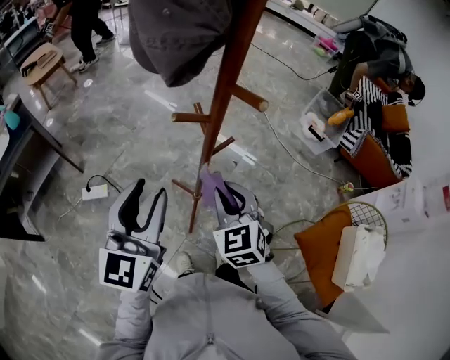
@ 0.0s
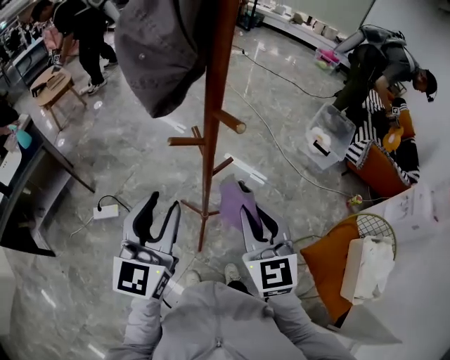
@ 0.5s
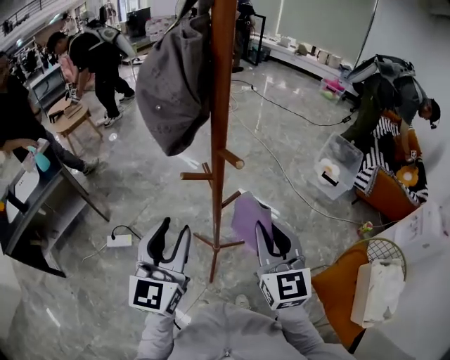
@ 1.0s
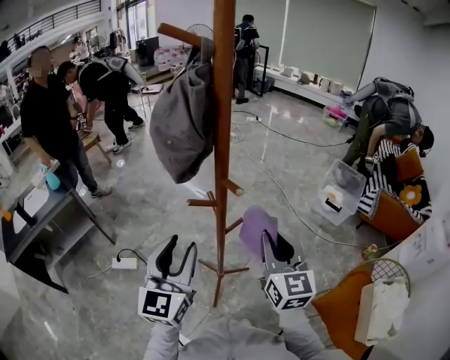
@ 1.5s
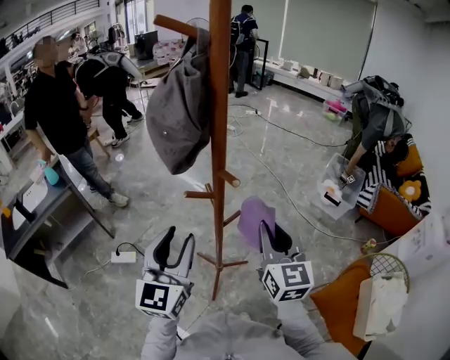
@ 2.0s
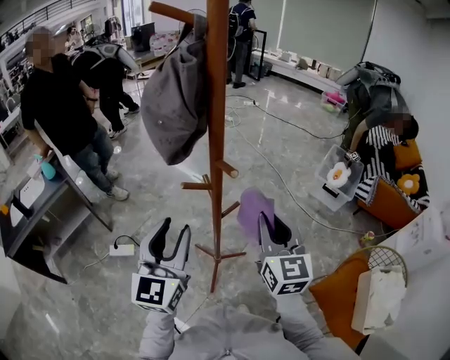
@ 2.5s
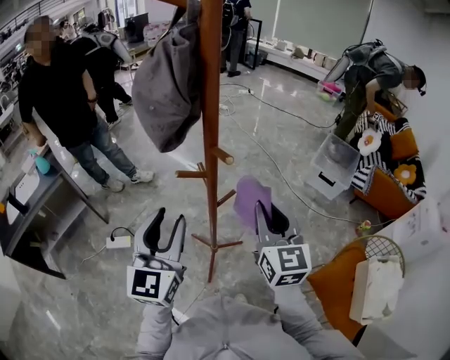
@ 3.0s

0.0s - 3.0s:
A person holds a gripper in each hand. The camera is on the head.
0.0s - 1.5s: The right gripper shifts about 20 cm upward and to the right, and swivels about 40 degrees, while the left gripper moves about 5 cm.
1.5s - 3.0s: Neither gripper changes place.

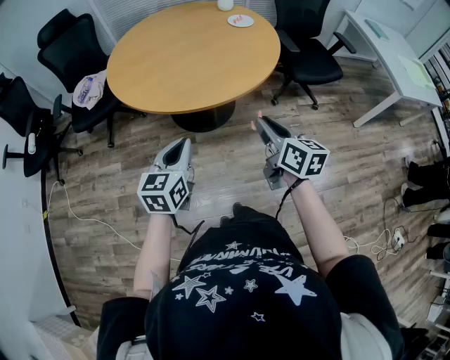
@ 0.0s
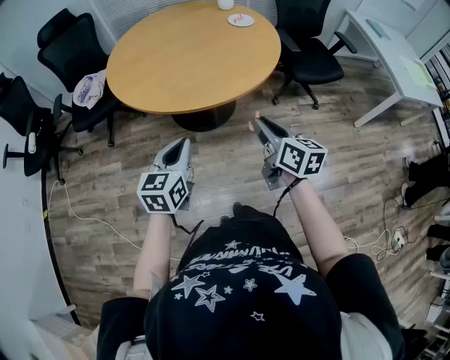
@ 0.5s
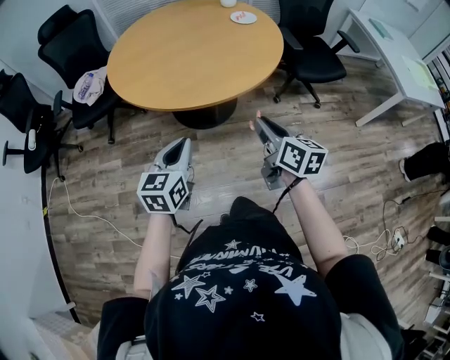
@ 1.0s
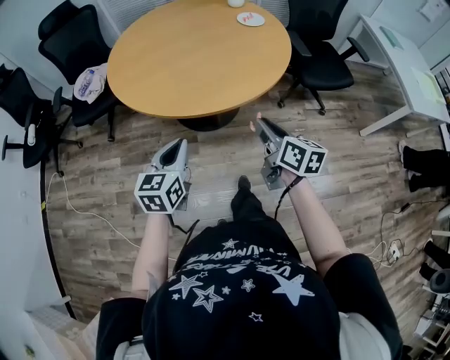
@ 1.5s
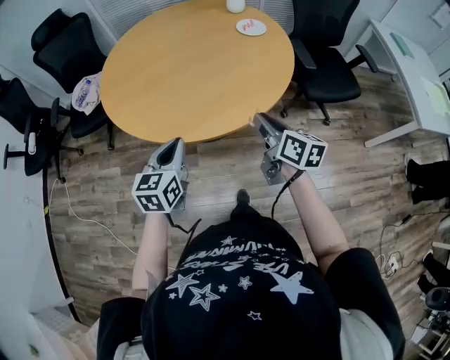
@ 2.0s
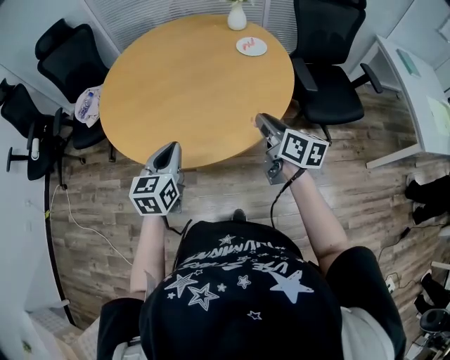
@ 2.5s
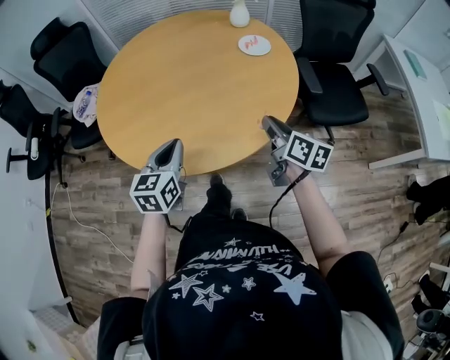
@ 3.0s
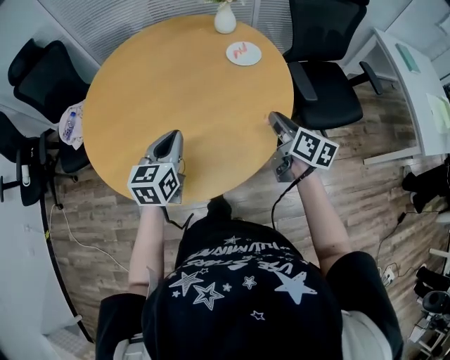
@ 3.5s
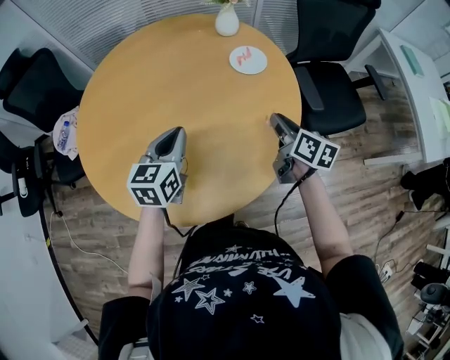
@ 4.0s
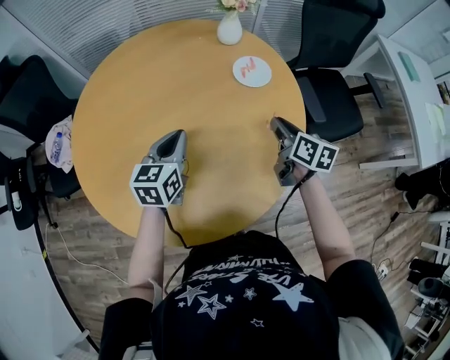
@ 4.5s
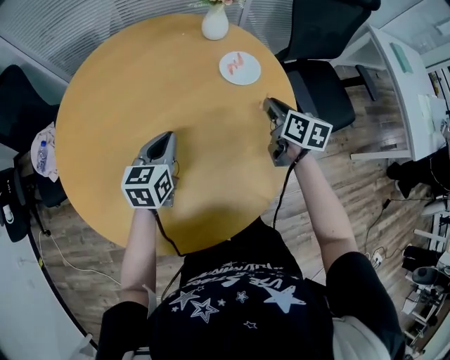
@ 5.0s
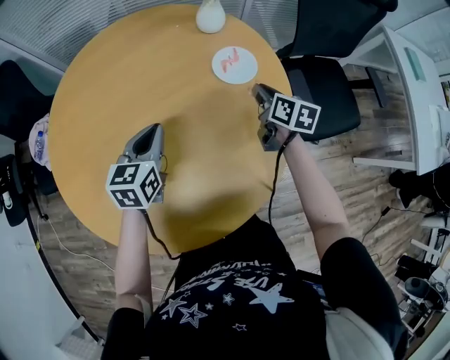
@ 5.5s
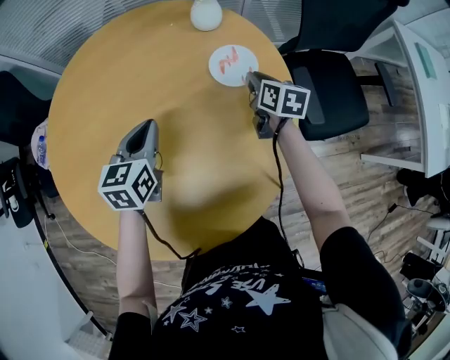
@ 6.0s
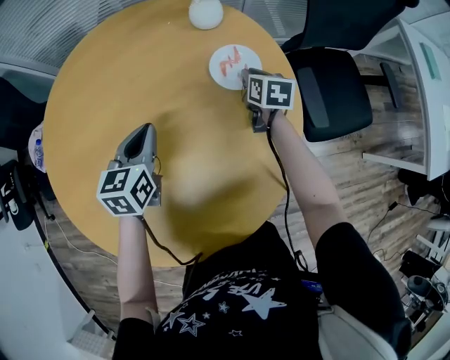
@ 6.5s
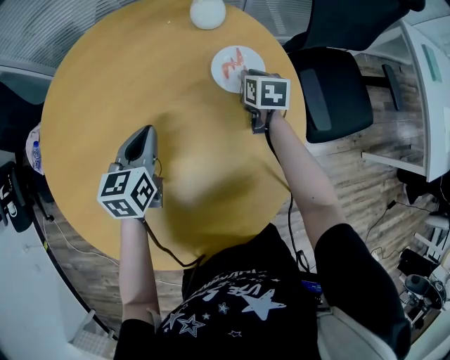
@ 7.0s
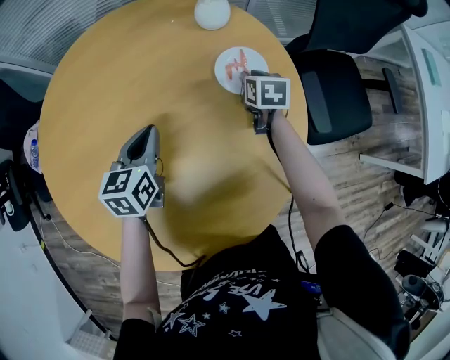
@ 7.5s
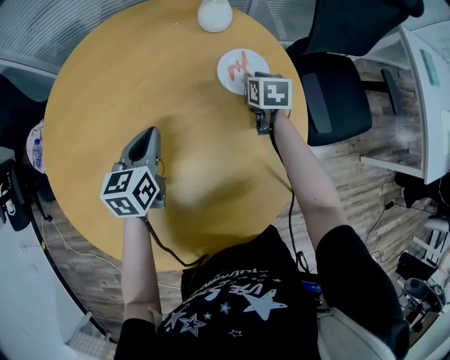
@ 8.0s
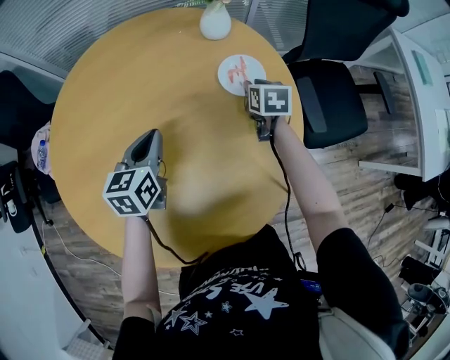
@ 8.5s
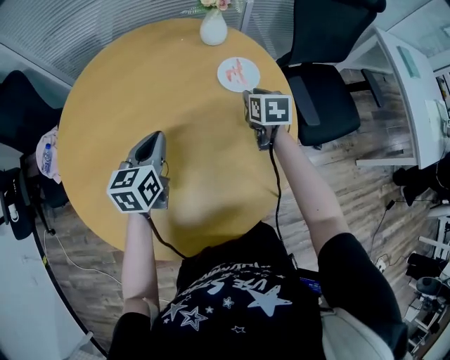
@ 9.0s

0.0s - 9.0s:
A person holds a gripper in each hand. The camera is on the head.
0.0s - 2.0s: Both grippers travel together forward, about 20 cm.
2.0s - 4.5s: Both grippers travel together forward, about 35 cm.
4.5s - 7.0s: The left gripper moves forward and downward, roughly 15 cm. Meanwhile the right gripper shifts about 30 cm forward and downward, and swivels roughly 30 degrees.
7.0s - 9.0s: Both grippers move backward and upward, some 10 cm.

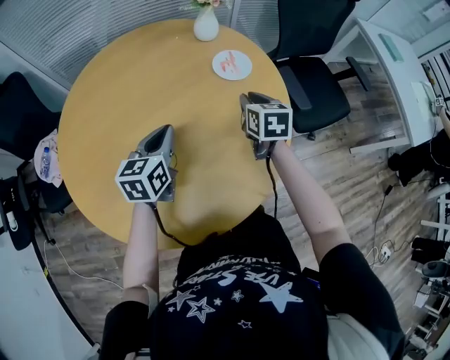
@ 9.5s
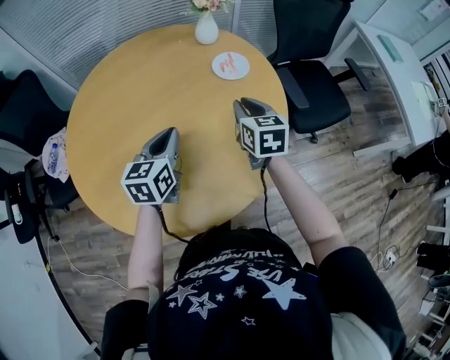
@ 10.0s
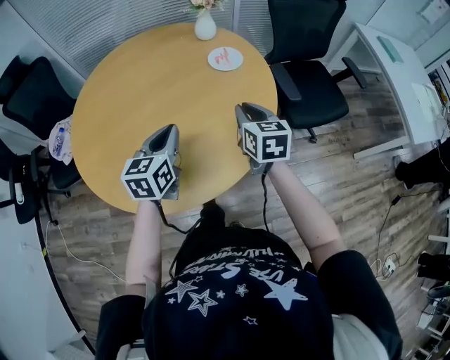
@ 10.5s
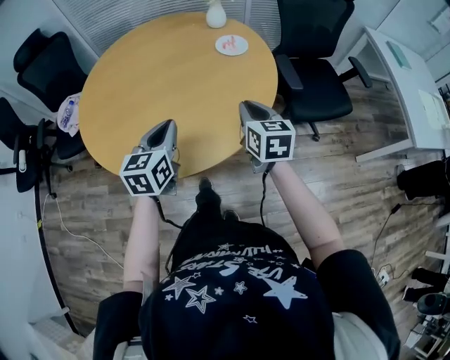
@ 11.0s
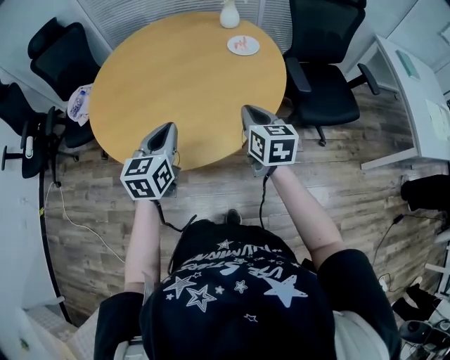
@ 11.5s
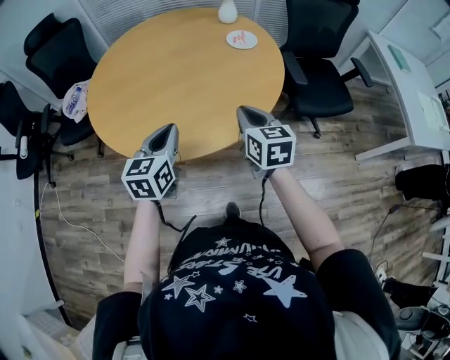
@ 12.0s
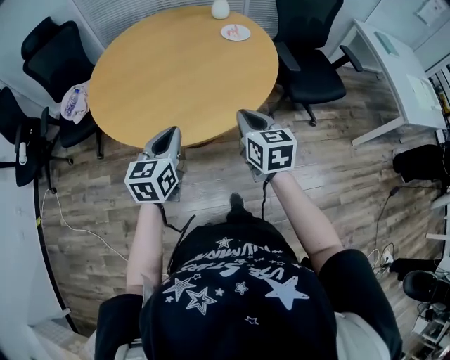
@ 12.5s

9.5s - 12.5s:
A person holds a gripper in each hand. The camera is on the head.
9.5s - 11.0s: Both grippers travel together backward, about 25 cm.
11.0s - 12.5s: Both grippers travel together backward and to the left, approximately 15 cm.

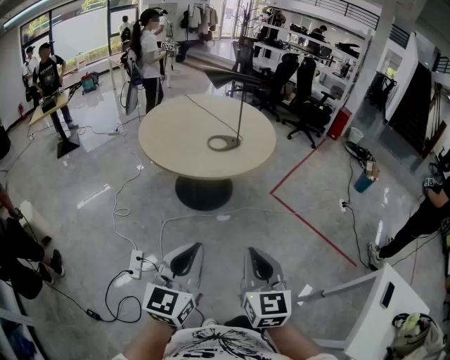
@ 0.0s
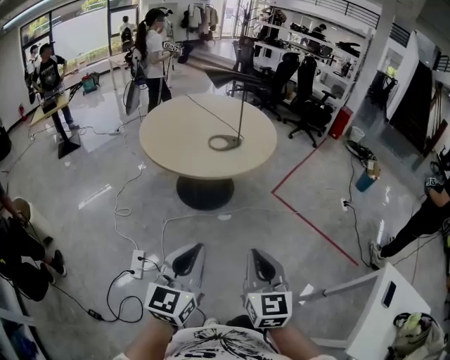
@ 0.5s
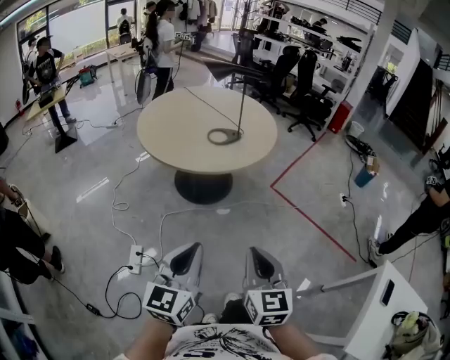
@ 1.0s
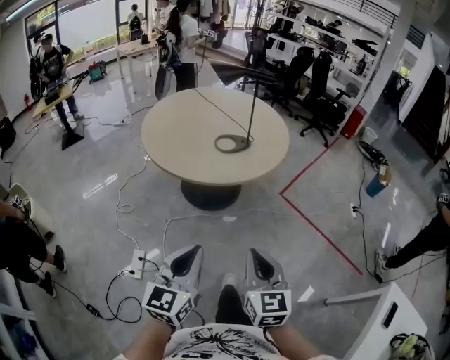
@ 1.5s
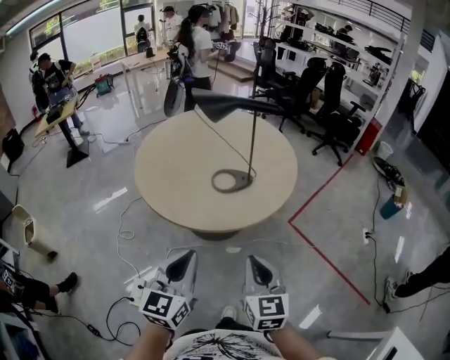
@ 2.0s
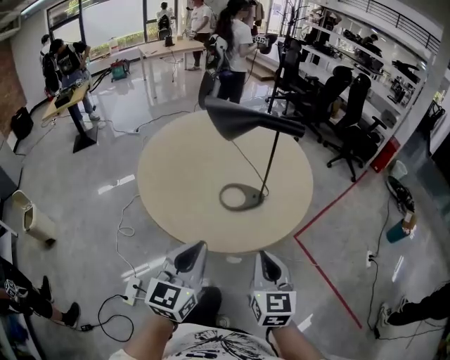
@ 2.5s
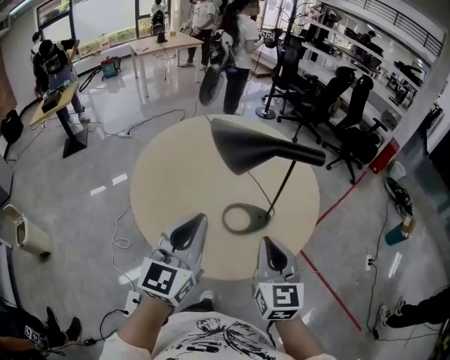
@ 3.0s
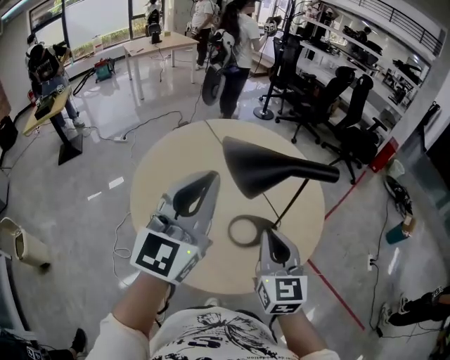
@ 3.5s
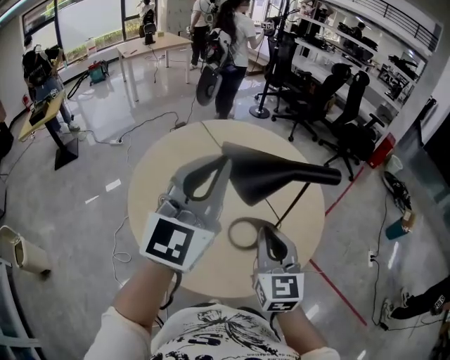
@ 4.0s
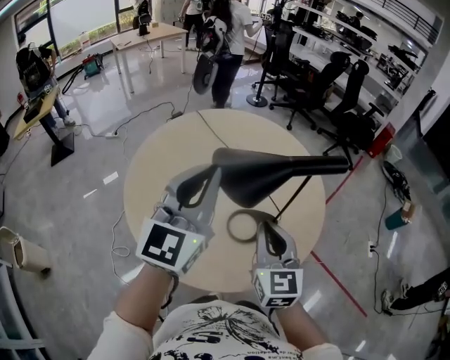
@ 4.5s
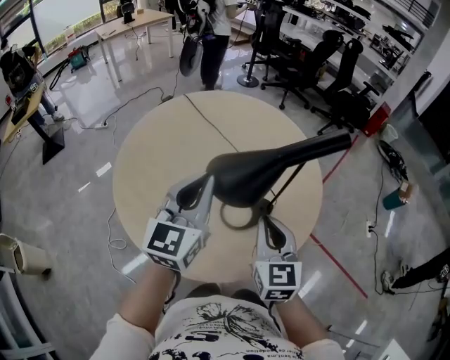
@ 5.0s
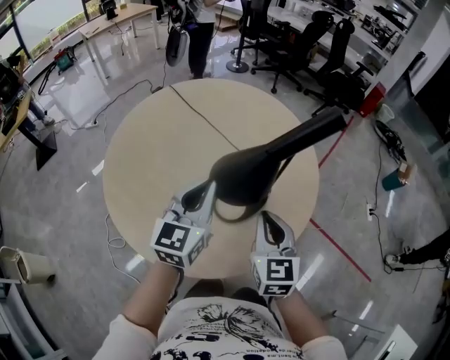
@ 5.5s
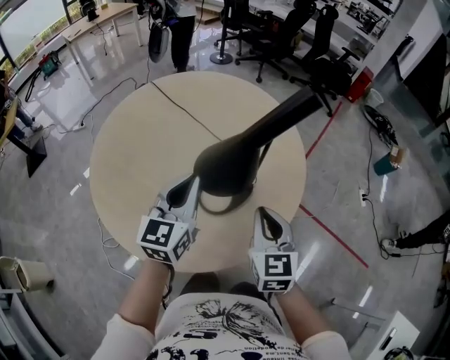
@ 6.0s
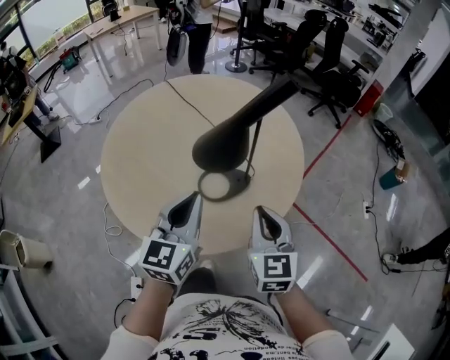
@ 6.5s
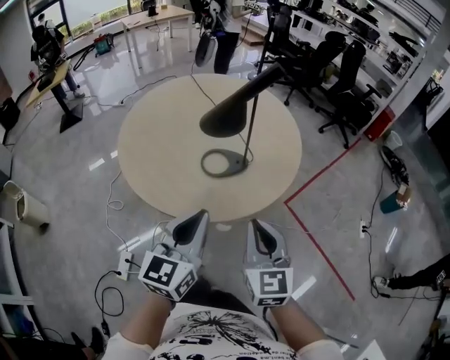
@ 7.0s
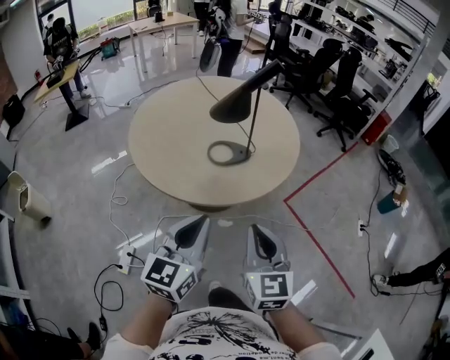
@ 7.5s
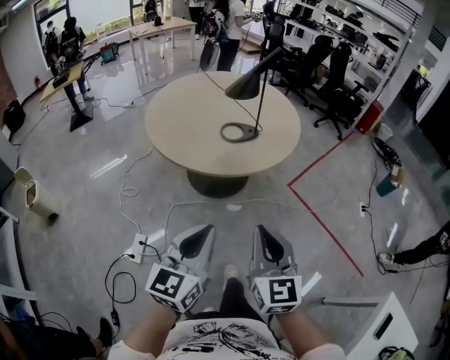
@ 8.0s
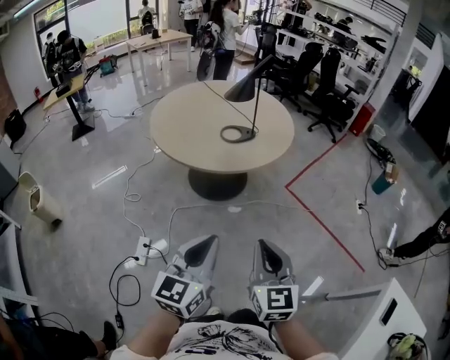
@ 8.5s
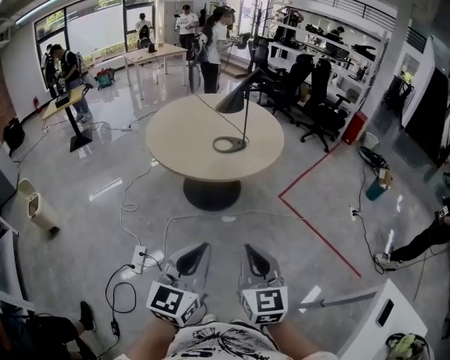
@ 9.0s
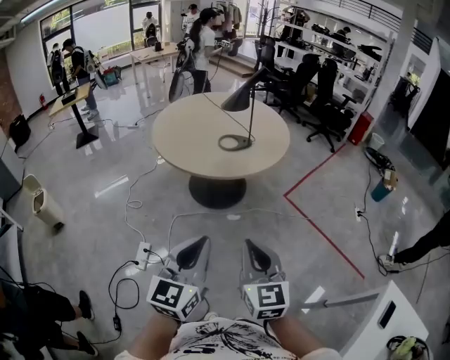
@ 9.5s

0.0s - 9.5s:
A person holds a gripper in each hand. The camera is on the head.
0.0s - 2.0s: The grippers both shift forward by roughly 25 cm.
2.0s - 4.0s: The right gripper is displaced forward by about 30 cm; the left gripper moves forward and upward, approximately 40 cm, and rotates about 30 degrees.
4.0s - 5.5s: The left gripper moves downward, some 20 cm, and rotates about 30 degrees. The right gripper heads downward, covering some 10 cm.
5.5s - 7.5s: The grippers both shift backward by approximately 30 cm.
7.5s - 9.5s: The grippers both shift backward by some 25 cm.

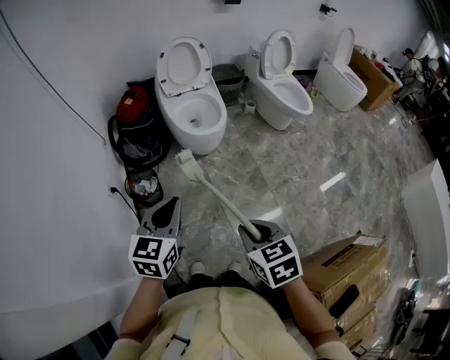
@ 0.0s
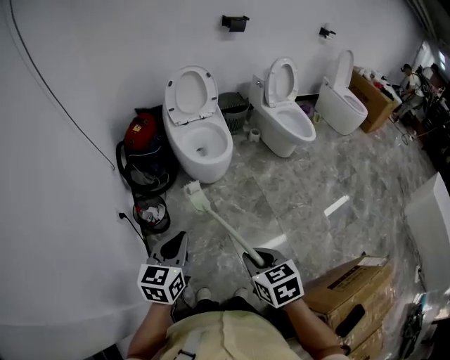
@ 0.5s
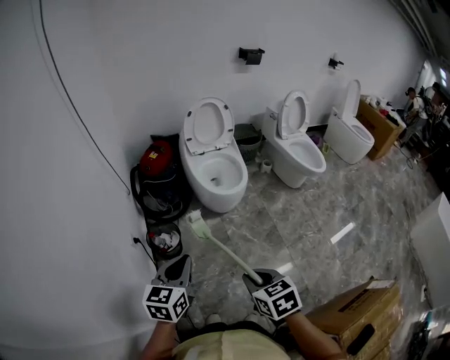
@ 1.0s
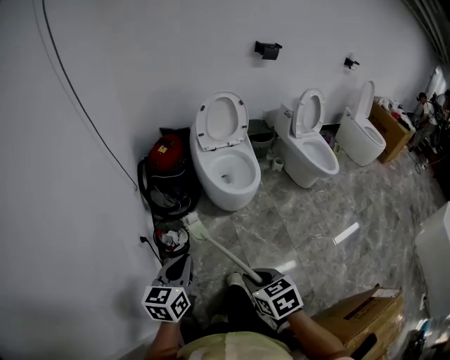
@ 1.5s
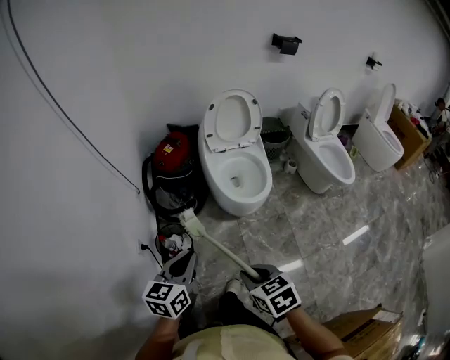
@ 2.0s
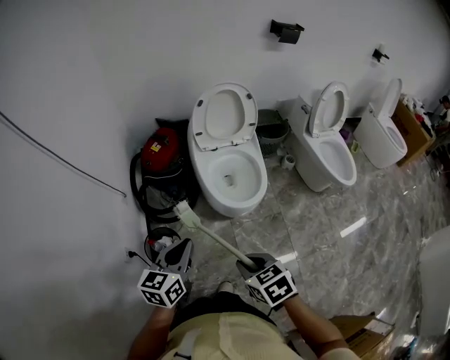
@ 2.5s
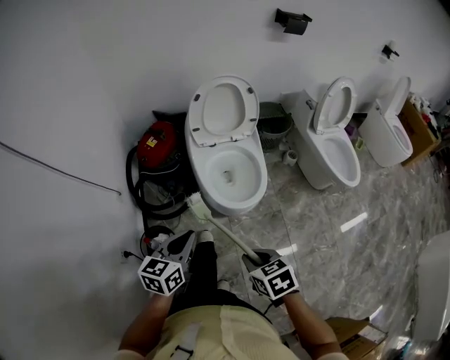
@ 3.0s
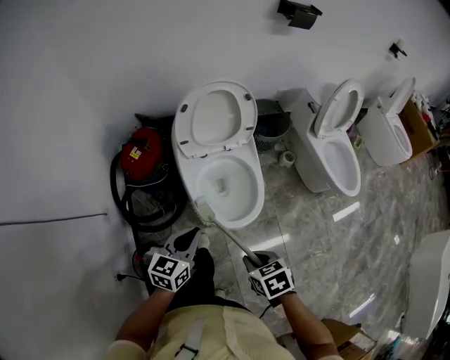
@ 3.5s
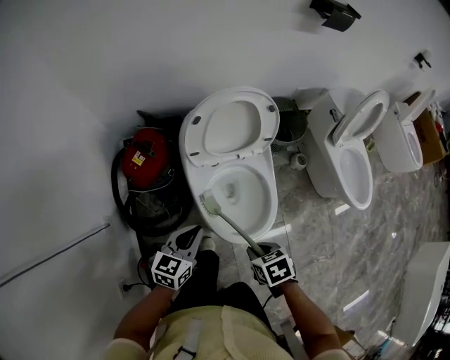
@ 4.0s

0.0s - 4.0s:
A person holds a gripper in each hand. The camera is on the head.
0.0s - 2.0s: The left gripper changes place by about 20 cm.
2.0s - 4.0s: The left gripper changes place by roughly 50 cm.
